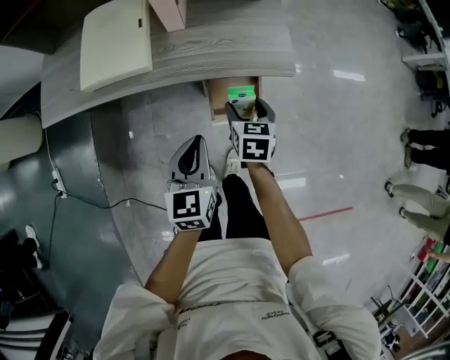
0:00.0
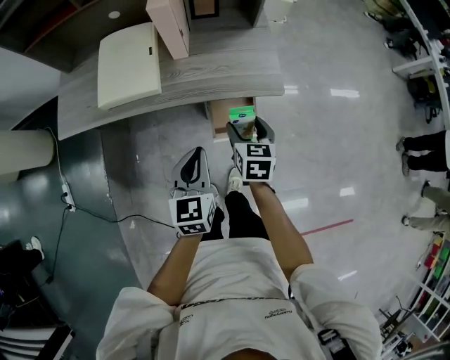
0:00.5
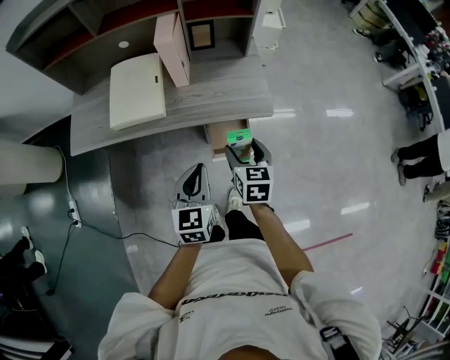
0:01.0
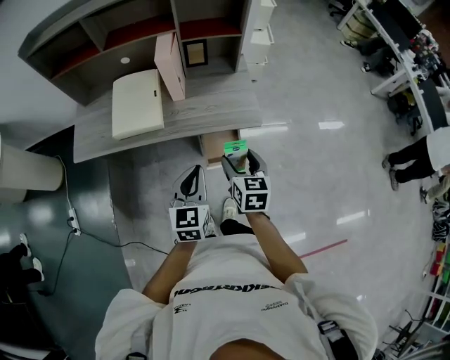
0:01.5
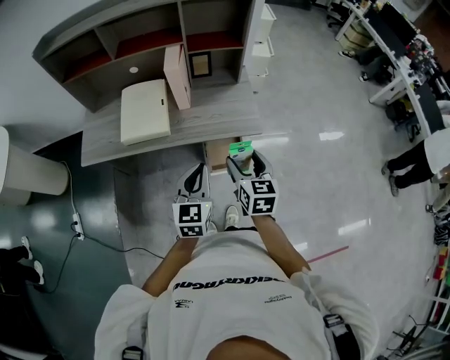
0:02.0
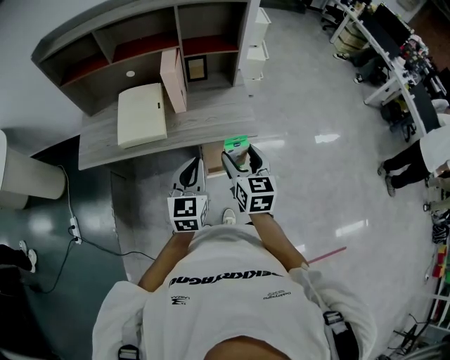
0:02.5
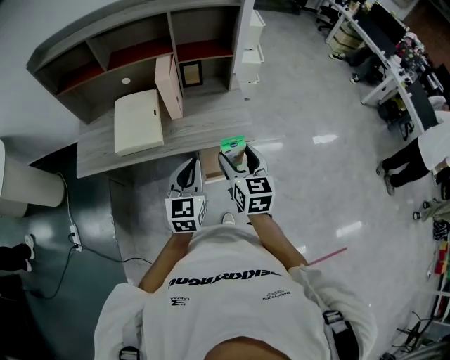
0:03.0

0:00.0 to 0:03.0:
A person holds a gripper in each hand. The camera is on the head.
0:00.0 to 0:01.5: The right gripper travels upward and backward by approximately 20 cm, while the left gripper goes some 15 cm upward.
0:01.5 to 0:03.0: The right gripper heads upward, covering about 10 cm; the left gripper is displaced upward by approximately 5 cm.

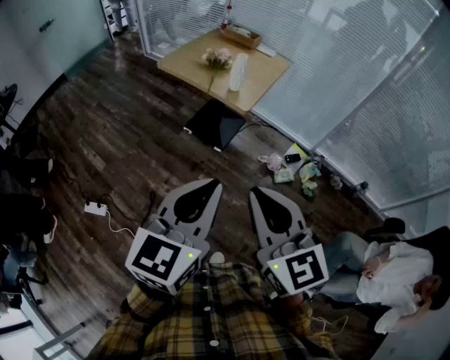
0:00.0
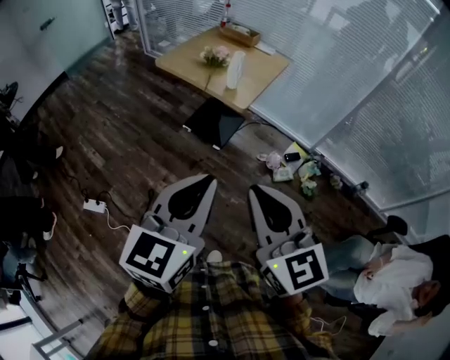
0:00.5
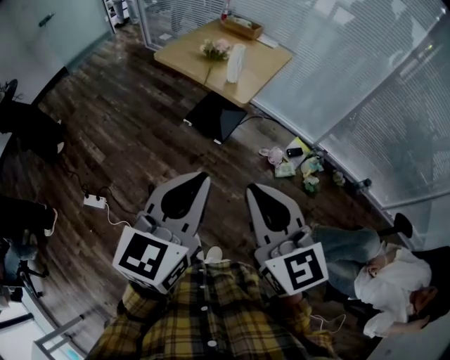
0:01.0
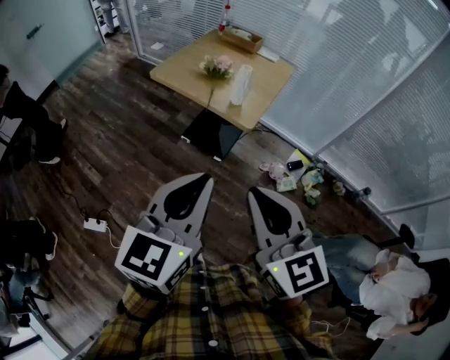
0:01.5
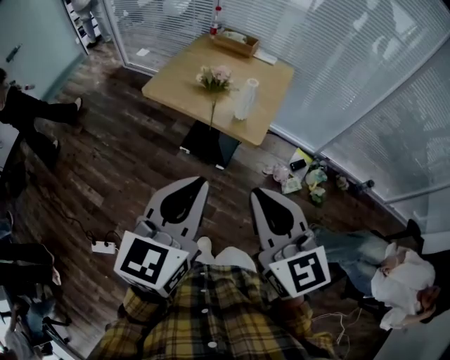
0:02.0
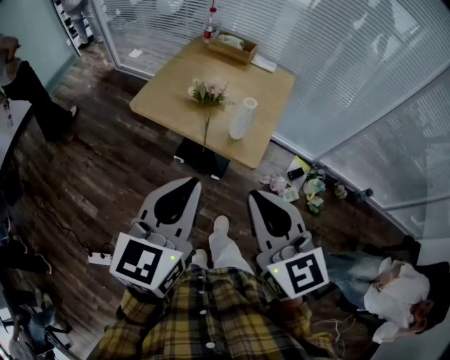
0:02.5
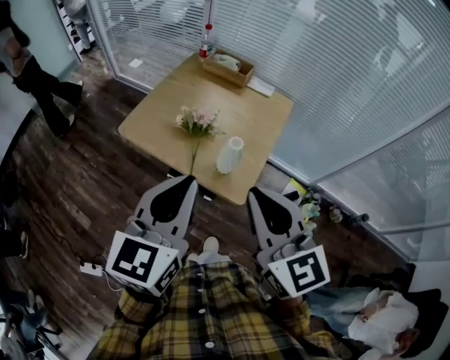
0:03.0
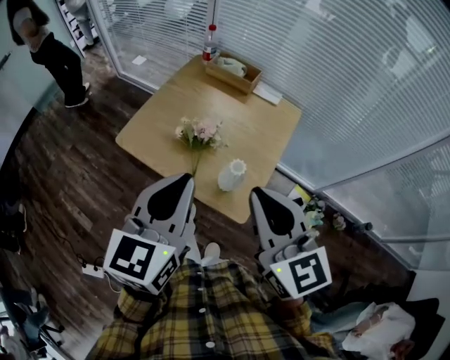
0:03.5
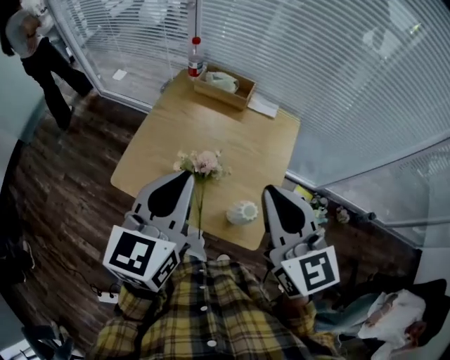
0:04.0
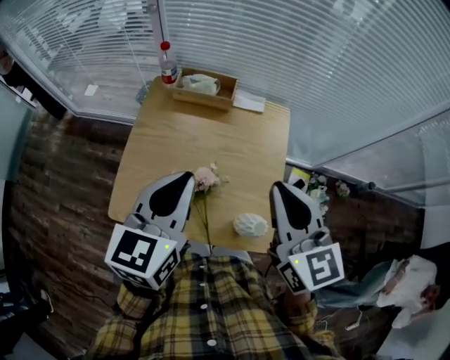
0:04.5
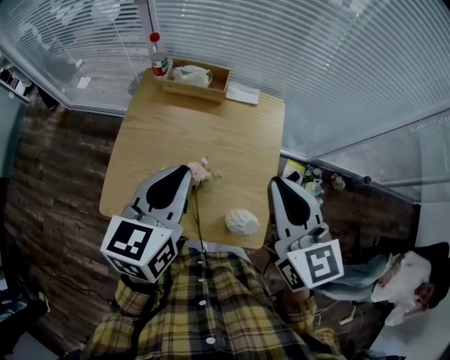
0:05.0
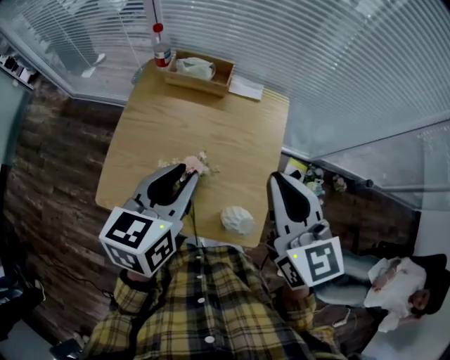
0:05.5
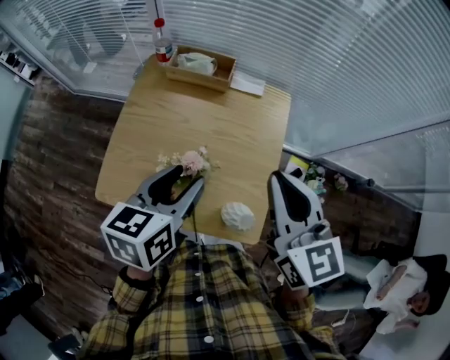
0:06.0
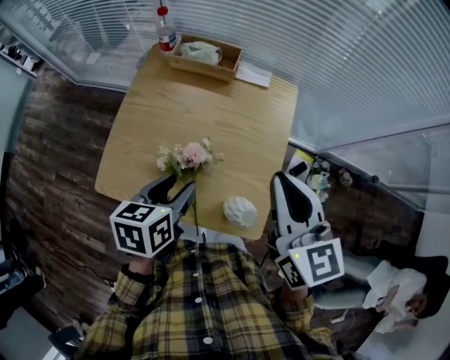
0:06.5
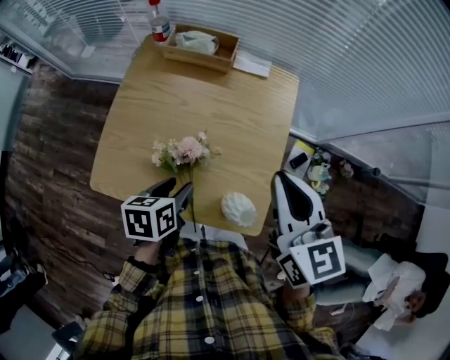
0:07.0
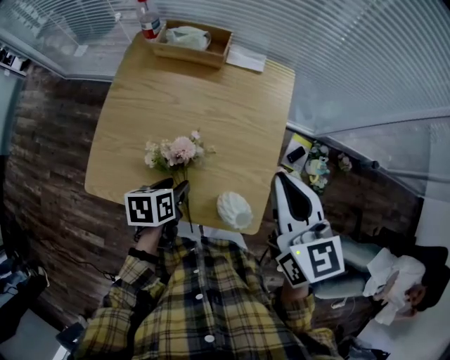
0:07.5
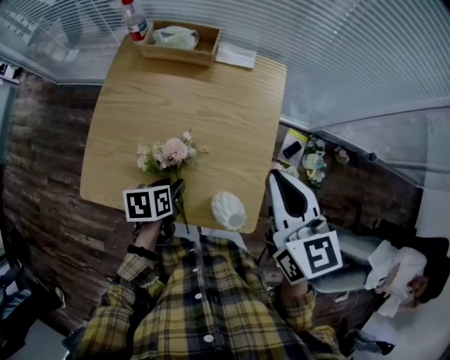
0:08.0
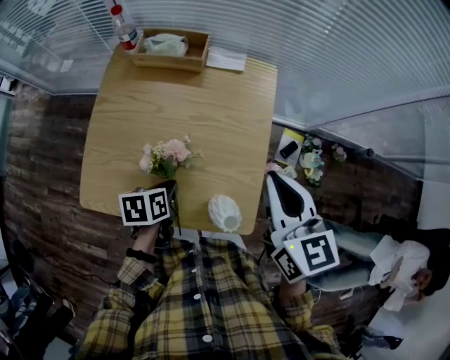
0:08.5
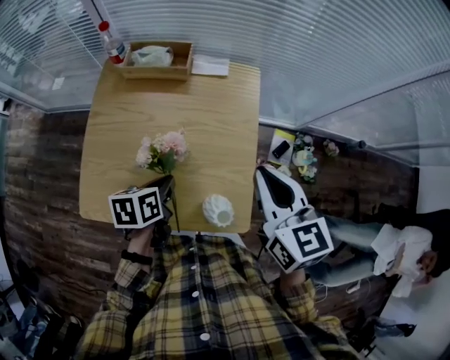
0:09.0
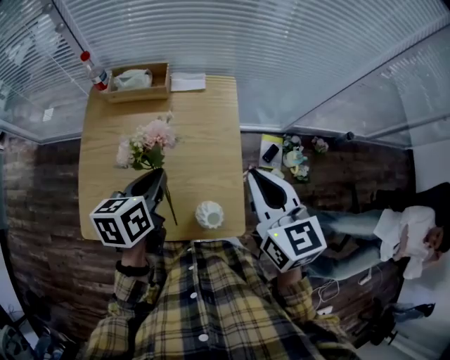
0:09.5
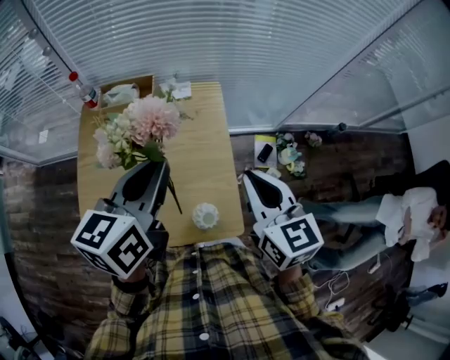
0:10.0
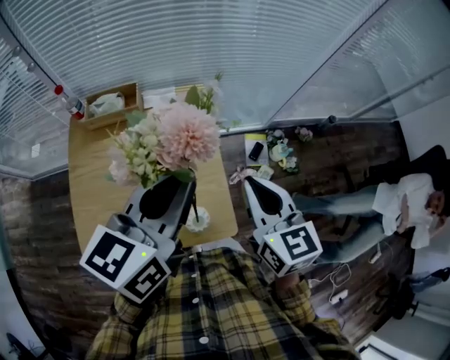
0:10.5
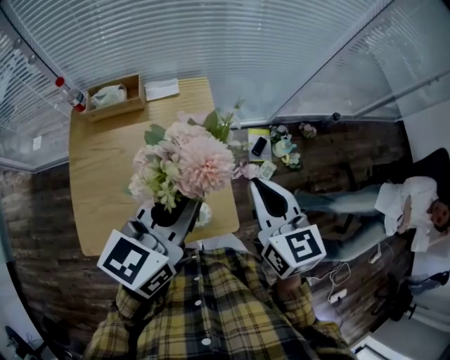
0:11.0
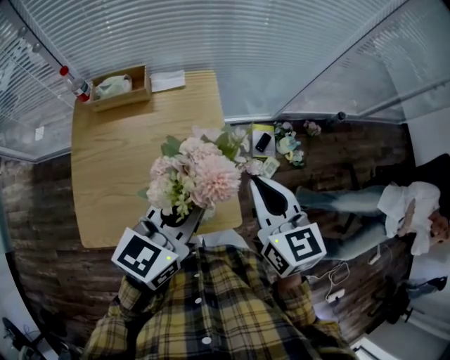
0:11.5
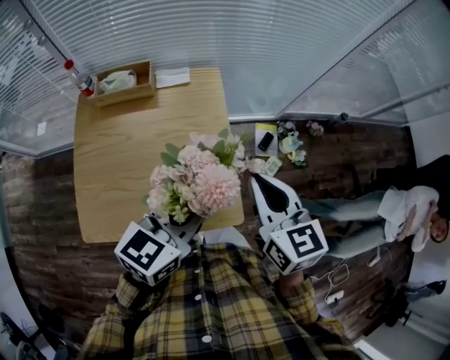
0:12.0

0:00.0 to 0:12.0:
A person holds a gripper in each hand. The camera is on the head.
0:00.0 to 0:02.0: The left gripper moves forward and to the left, about 25 cm. Meanwhile the right gripper goes roughly 20 cm forward.
0:02.0 to 0:04.0: The two grippers travel together, forward, about 40 cm.
0:04.0 to 0:06.0: The left gripper shifts roughly 10 cm downward and forward, changes its angle by about 30 degrees, and opens its fingers. The right gripper is displaced forward by some 5 cm.
0:06.0 to 0:08.0: The right gripper travels downward by some 5 cm. Meanwhile the left gripper shifts some 25 cm downward, and swivels roughly 40 degrees.
0:08.0 to 0:10.0: The right gripper shifts by roughly 5 cm; the left gripper is displaced upward by roughly 30 cm, points its fingers some 40 degrees further upward, and closes up.
0:10.0 to 0:12.0: The left gripper travels to the right, backward and downward by approximately 15 cm, and rotates about 20 degrees.

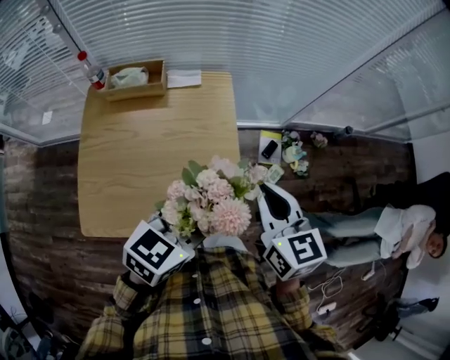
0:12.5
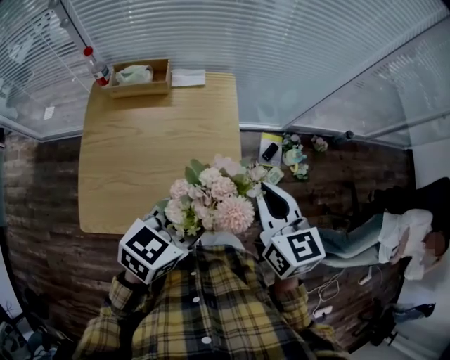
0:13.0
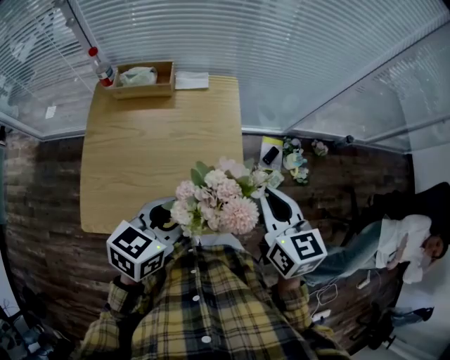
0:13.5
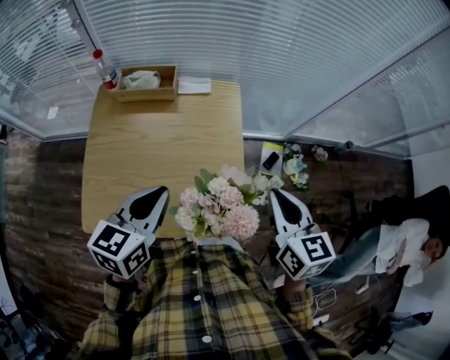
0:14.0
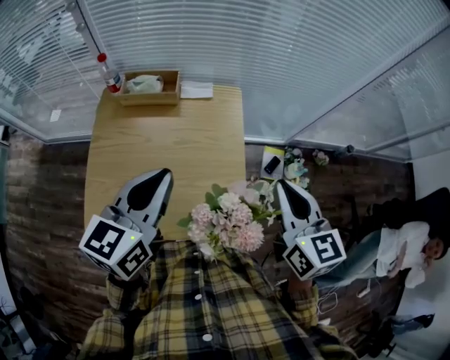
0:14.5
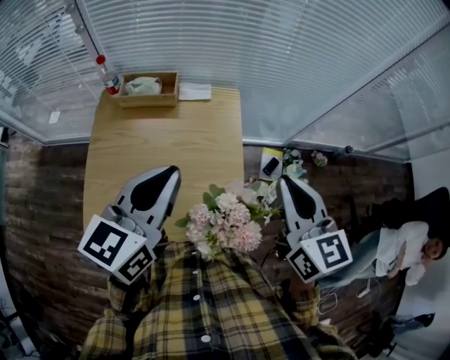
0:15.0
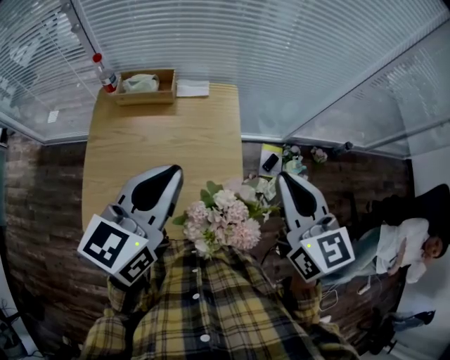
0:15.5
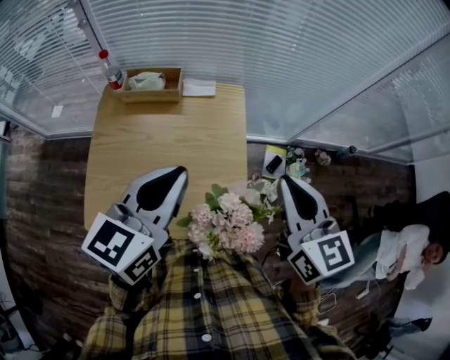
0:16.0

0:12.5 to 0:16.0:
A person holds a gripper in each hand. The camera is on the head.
0:12.5 to 0:14.5: The left gripper moves to the left and upward, roughly 15 cm, changes its angle by about 30 degrees, and closes up; the right gripper moves approximately 5 cm.
0:14.5 to 0:16.0: The grippers stay close to where they were, moving slightly.

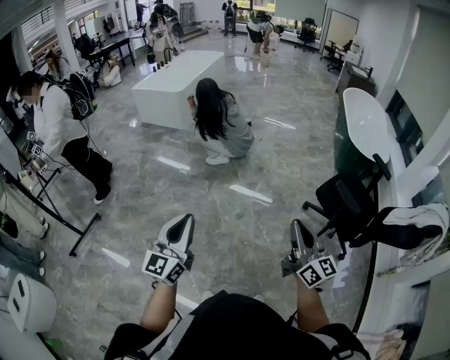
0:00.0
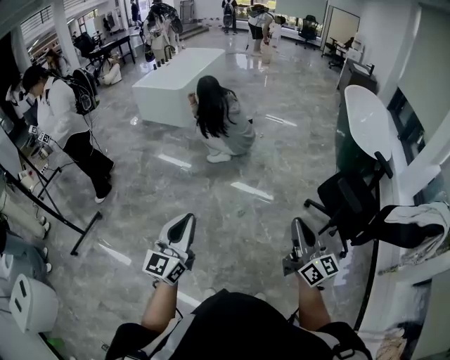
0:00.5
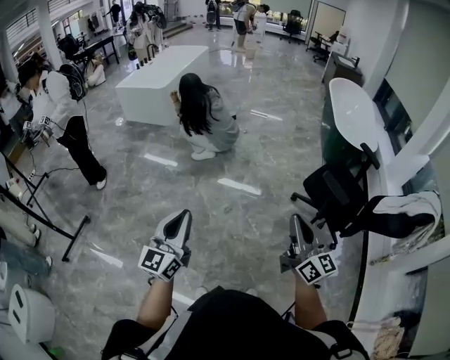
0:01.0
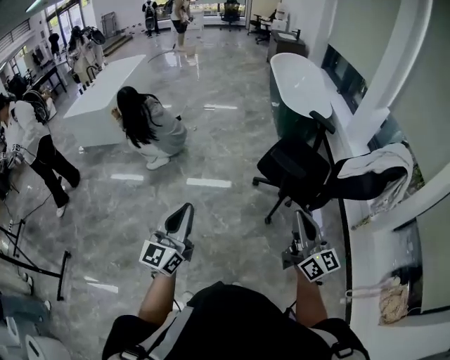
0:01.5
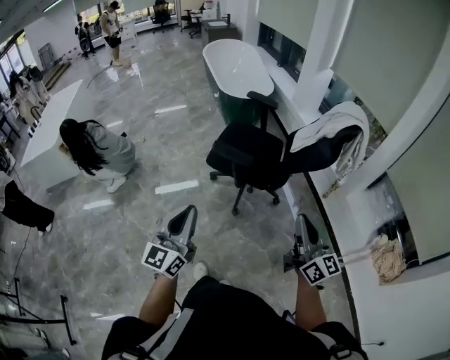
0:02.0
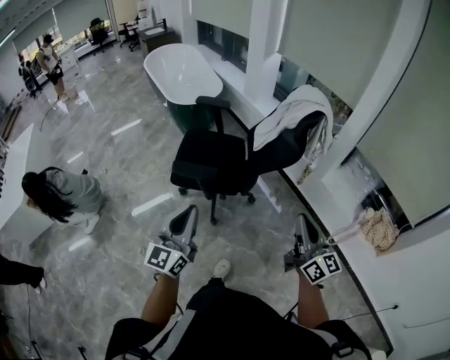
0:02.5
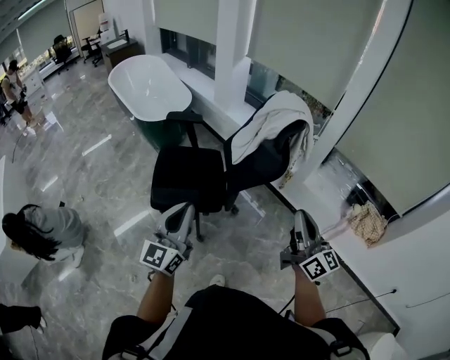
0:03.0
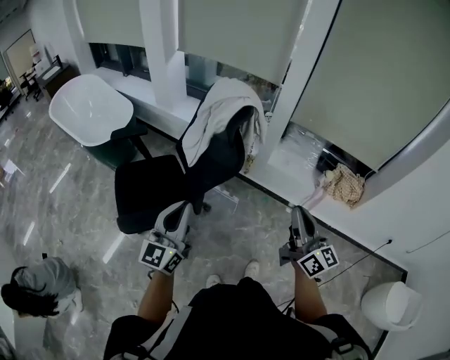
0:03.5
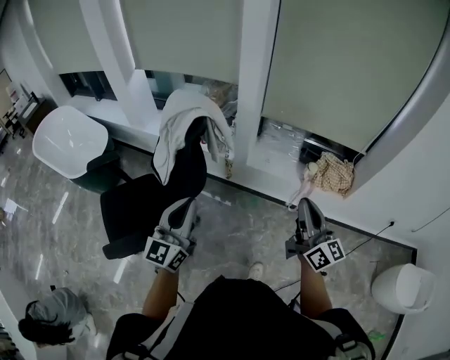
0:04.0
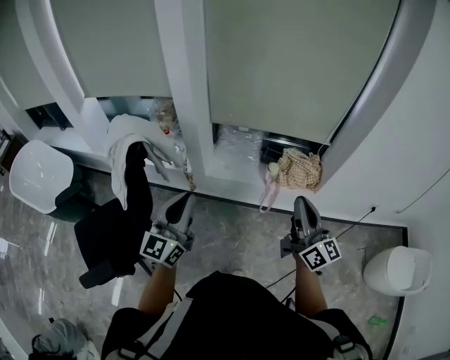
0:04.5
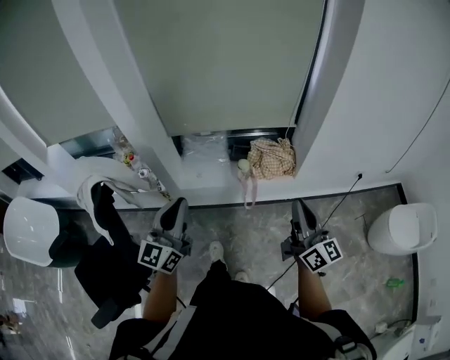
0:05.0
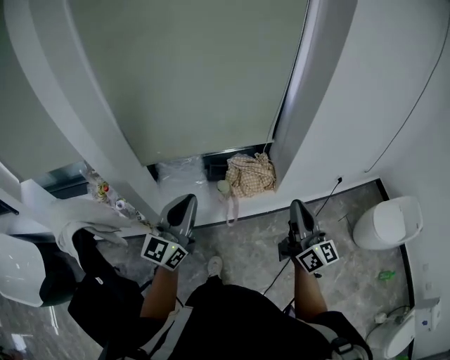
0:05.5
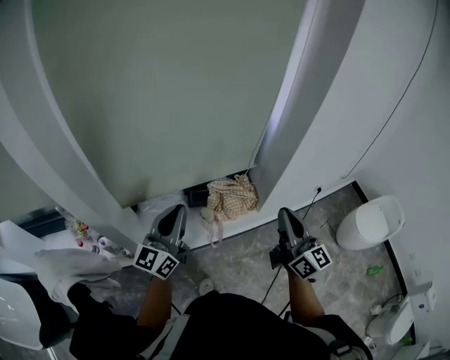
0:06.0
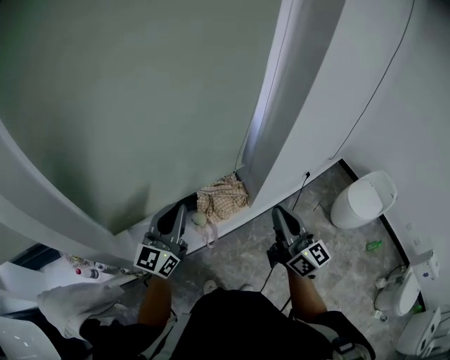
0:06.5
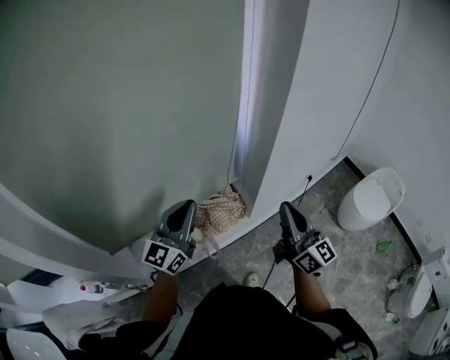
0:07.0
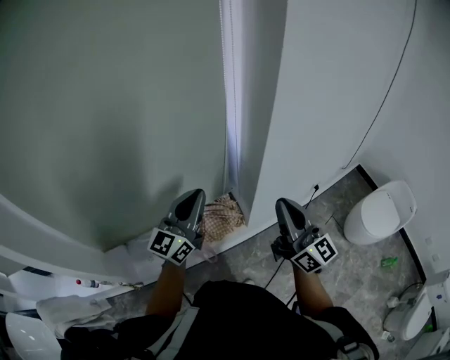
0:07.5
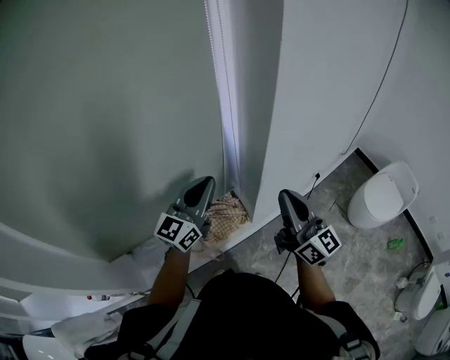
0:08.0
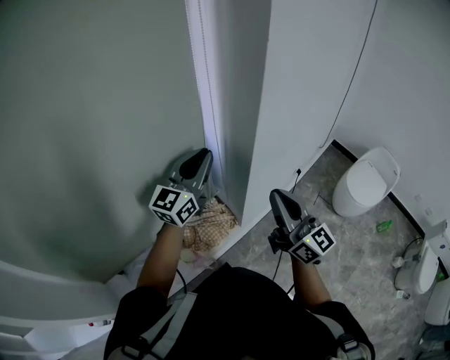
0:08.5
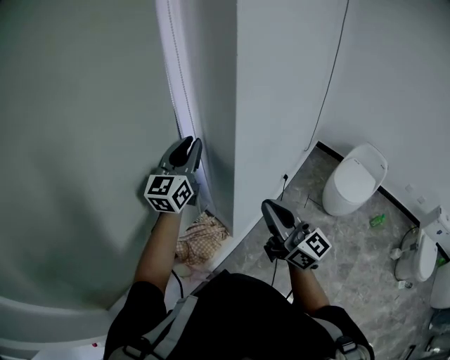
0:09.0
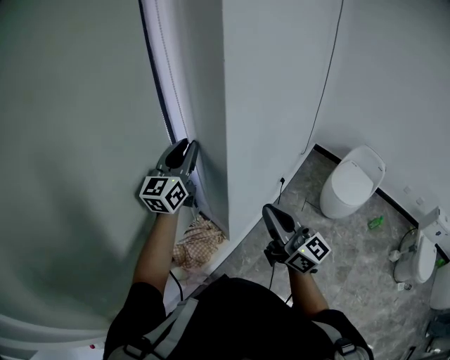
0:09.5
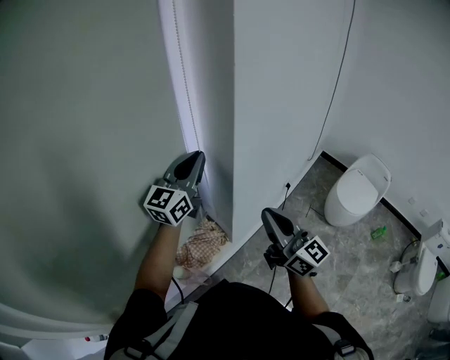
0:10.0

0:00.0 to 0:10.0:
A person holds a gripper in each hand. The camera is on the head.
0:00.0 to 0:02.0: The pair of grippers is taken approximately 40 cm. The right gripper turns by roughly 40 degrees; the left gripper swivels about 40 degrees.
0:02.0 to 0:04.0: The left gripper moves about 50 cm, and swivels approximately 50 degrees, while the right gripper shifts by approximately 30 cm, and rotates approximately 50 degrees.
0:04.0 to 0:06.0: The right gripper shifts by roughly 35 cm, and rotates approximately 40 degrees. The left gripper ends up approximately 50 cm from where it was, and turns by about 40 degrees.
0:06.0 to 0:08.0: The right gripper moves forward and to the right, some 20 cm. The left gripper shifts some 35 cm forward and to the right, and rotates roughly 20 degrees.
0:08.0 to 0:10.0: The left gripper moves forward, upward and to the right, roughly 15 cm, and opens, then closes again.
